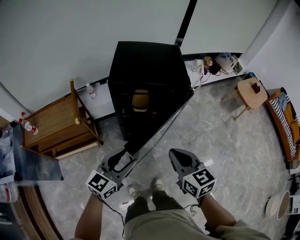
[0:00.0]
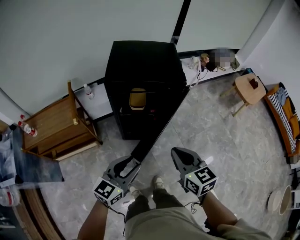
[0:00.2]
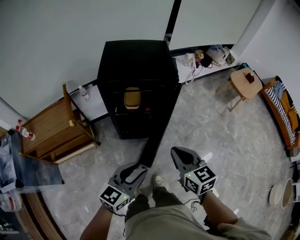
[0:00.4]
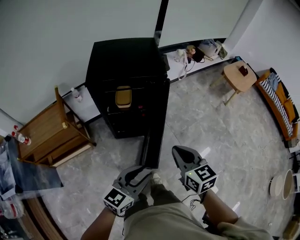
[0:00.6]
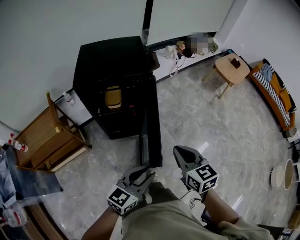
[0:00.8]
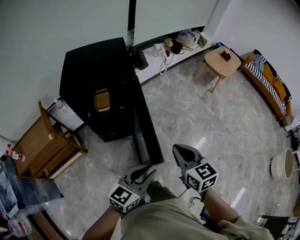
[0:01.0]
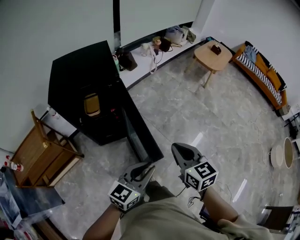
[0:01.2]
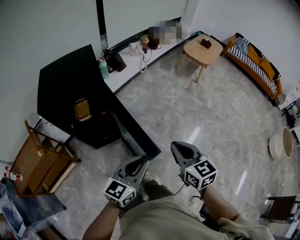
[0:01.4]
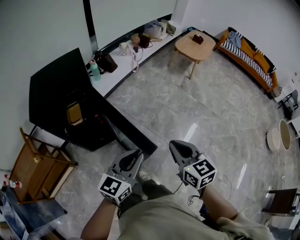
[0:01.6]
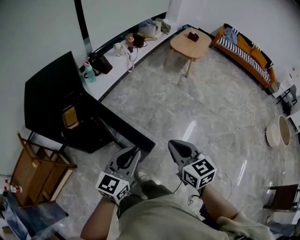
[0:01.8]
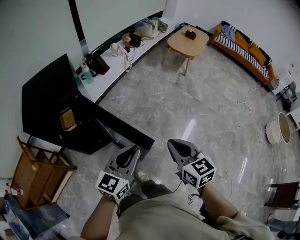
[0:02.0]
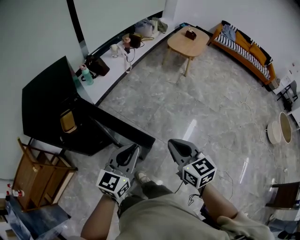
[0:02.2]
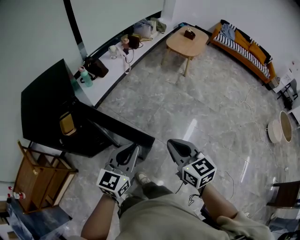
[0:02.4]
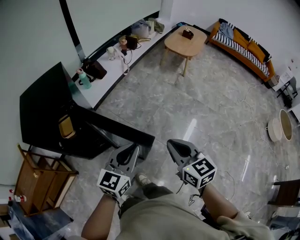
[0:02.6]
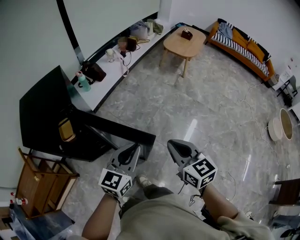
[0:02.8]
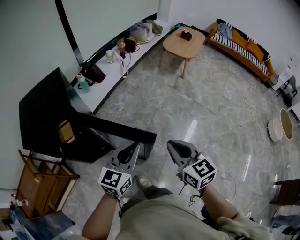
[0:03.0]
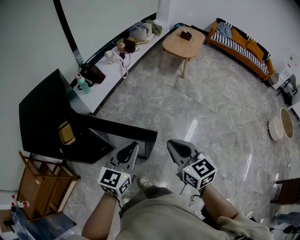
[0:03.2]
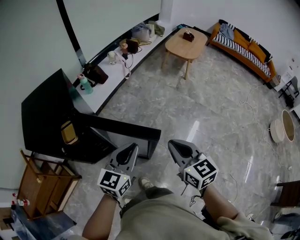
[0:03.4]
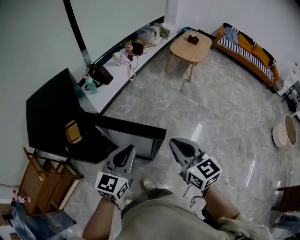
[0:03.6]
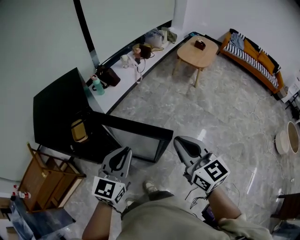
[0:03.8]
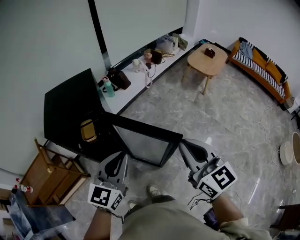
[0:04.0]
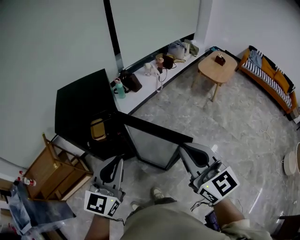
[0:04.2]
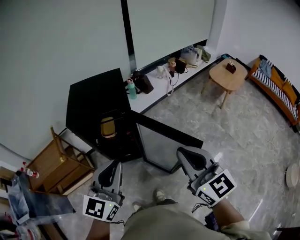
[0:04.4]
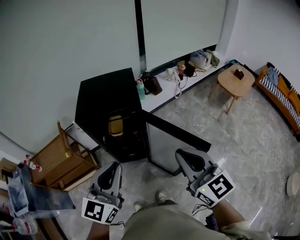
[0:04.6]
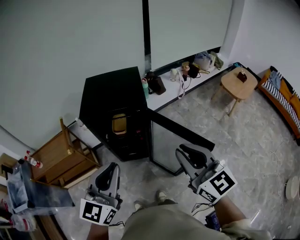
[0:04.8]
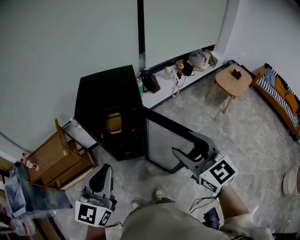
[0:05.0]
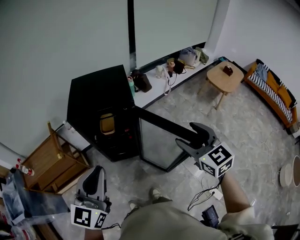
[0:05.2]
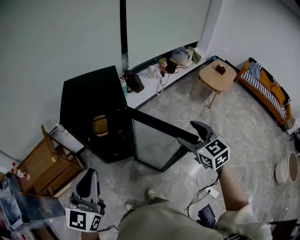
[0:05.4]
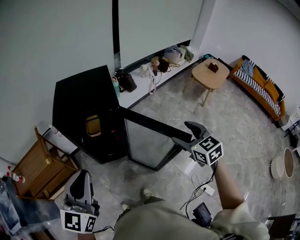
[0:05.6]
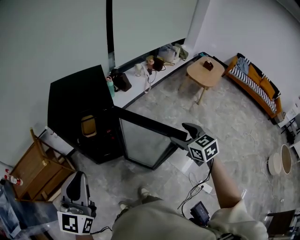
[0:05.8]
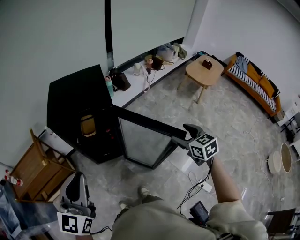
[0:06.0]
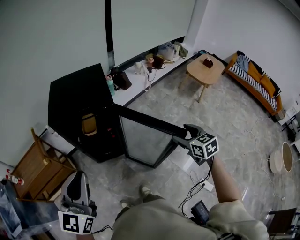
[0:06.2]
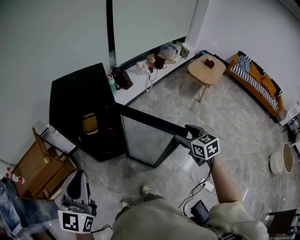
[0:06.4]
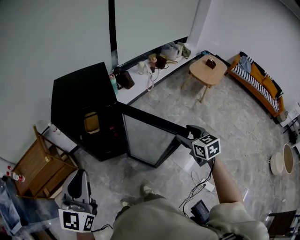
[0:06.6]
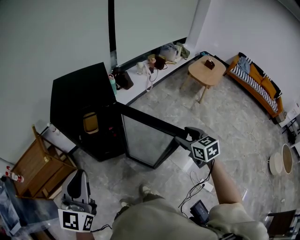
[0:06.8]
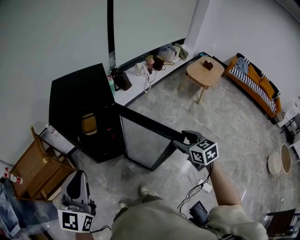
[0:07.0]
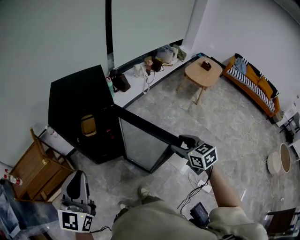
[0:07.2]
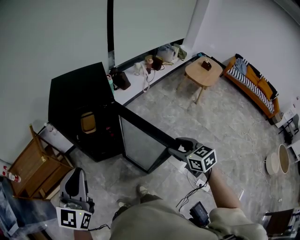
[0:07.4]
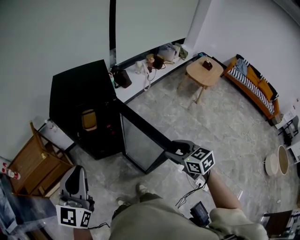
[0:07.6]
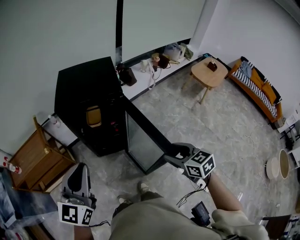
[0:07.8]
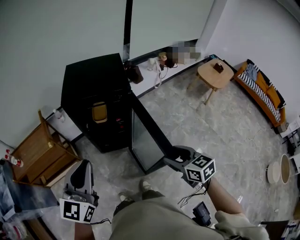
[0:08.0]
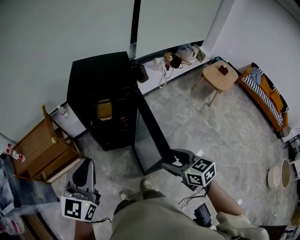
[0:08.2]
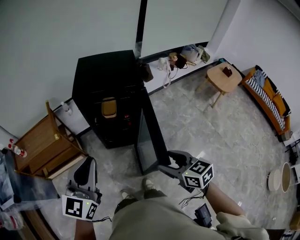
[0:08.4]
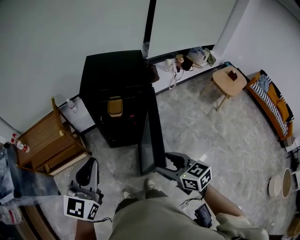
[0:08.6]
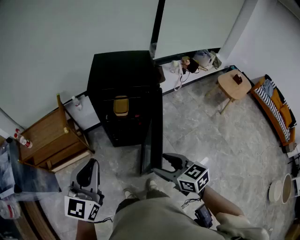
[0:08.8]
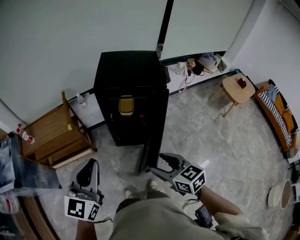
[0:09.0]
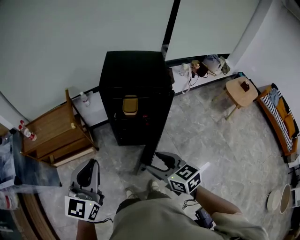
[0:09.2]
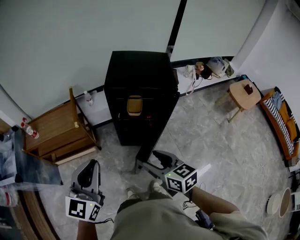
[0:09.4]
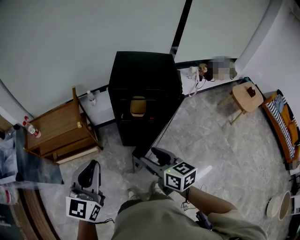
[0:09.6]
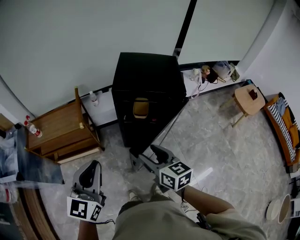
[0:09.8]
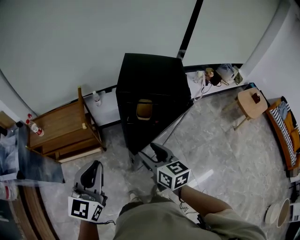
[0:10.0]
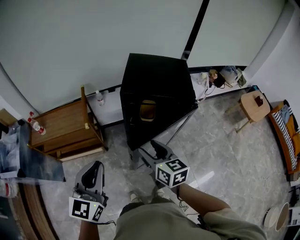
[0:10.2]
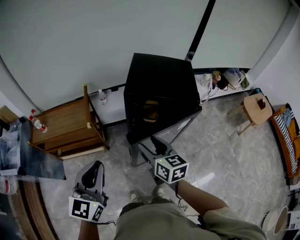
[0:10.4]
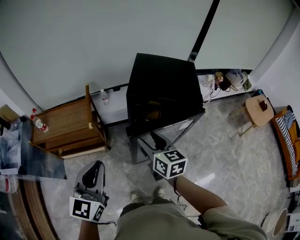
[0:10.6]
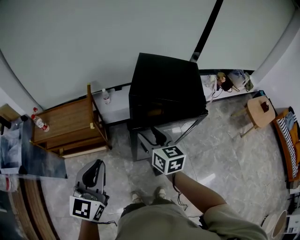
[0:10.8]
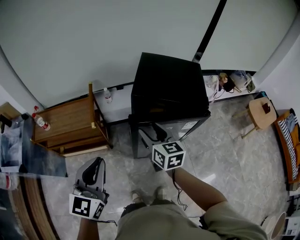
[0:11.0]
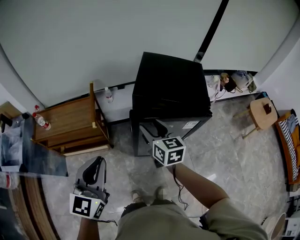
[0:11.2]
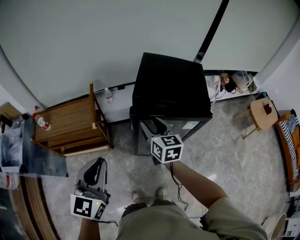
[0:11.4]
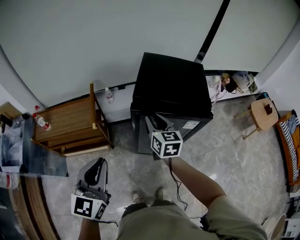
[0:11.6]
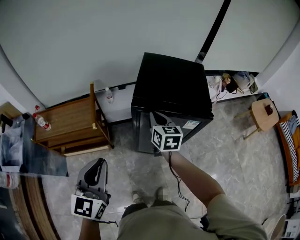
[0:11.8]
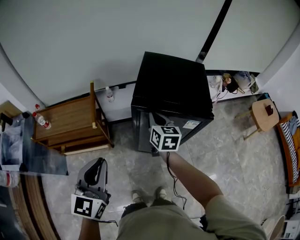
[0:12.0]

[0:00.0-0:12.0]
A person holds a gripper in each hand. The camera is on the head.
0:00.0 to 0:01.6: The right gripper ends up about 35 cm from where it was, and rotates some 30 degrees, while the left gripper changes place by roughly 35 cm, turns by approximately 20 degrees, and closes up.
0:01.6 to 0:03.0: The right gripper moves to the right and forward, some 10 cm. The left gripper heads forward and to the right, covering roughly 15 cm.
0:03.0 to 0:04.4: Both grippers travel together to the left and upward, roughly 25 cm. The right gripper changes its angle by approximately 30 degrees; the left gripper rotates approximately 30 degrees.
0:04.4 to 0:06.0: The left gripper shifts roughly 10 cm to the left. Meanwhile the right gripper moves downward, to the right and forward, some 20 cm, changes its angle by roughly 30 degrees, and opens up.
0:06.0 to 0:07.6: The right gripper shifts roughly 10 cm to the left and backward.
0:07.6 to 0:09.0: The right gripper travels to the left by about 25 cm. Meanwhile the left gripper shifts about 15 cm to the left.
0:09.0 to 0:10.4: The left gripper shifts about 10 cm to the left and forward. The right gripper shifts some 20 cm forward and to the left.
0:10.4 to 0:12.0: The right gripper shifts some 15 cm forward, and closes up.

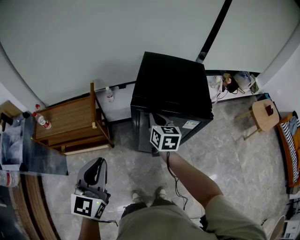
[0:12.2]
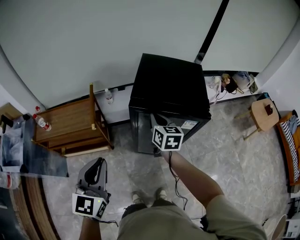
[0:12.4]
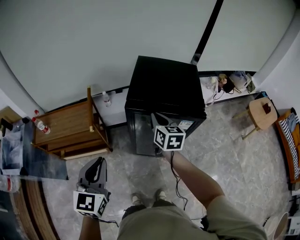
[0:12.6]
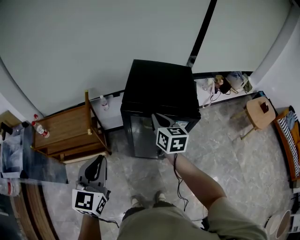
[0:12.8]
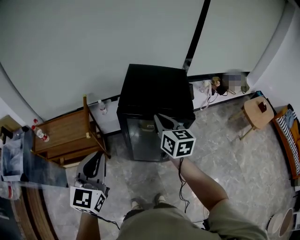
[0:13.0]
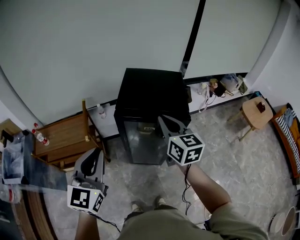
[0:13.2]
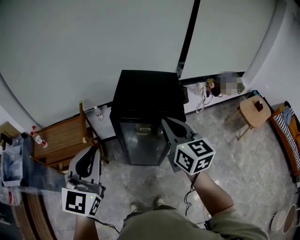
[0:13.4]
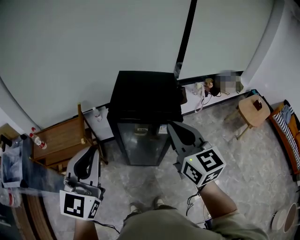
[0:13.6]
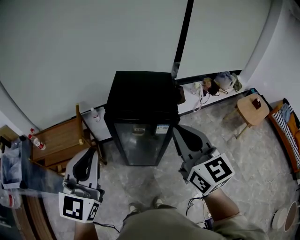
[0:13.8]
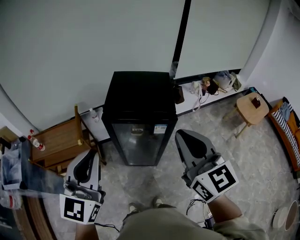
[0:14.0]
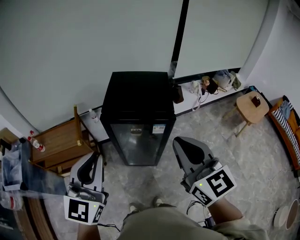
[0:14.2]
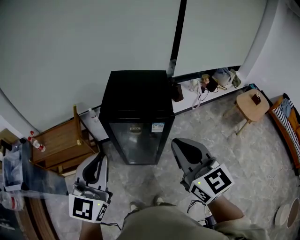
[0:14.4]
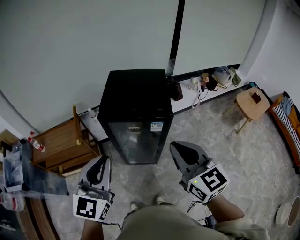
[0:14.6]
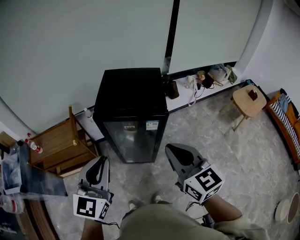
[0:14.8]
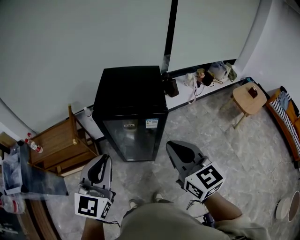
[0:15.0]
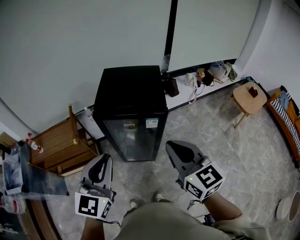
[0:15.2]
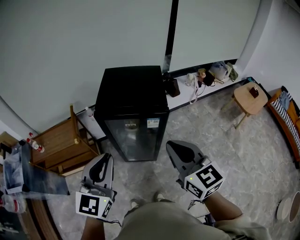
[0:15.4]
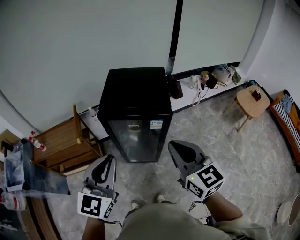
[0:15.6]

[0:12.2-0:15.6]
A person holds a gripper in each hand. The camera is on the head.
0:12.2 to 0:13.8: The left gripper is displaced upward and to the right by about 20 cm. Meanwhile the right gripper heads upward, backward and to the right, covering roughly 35 cm, and swivels roughly 30 degrees.
0:13.8 to 0:15.6: The left gripper goes approximately 10 cm to the right and downward. The right gripper travels downward by roughly 5 cm.

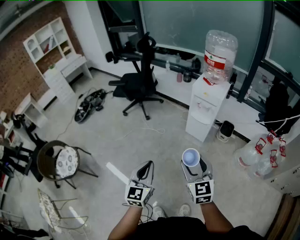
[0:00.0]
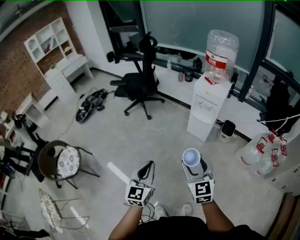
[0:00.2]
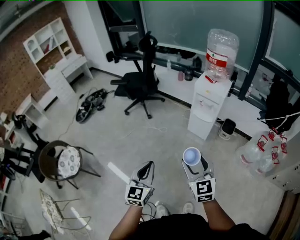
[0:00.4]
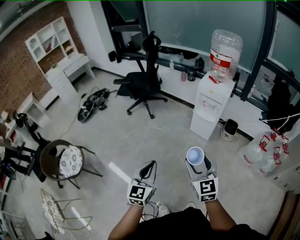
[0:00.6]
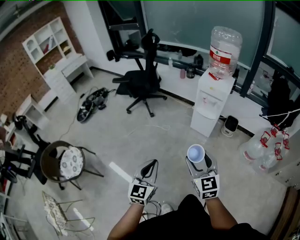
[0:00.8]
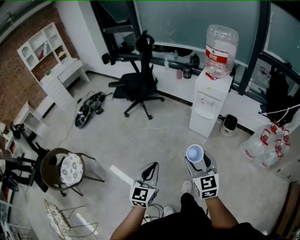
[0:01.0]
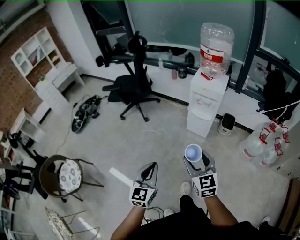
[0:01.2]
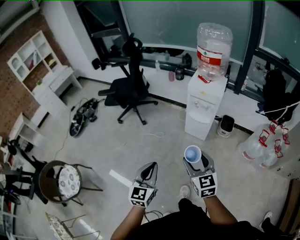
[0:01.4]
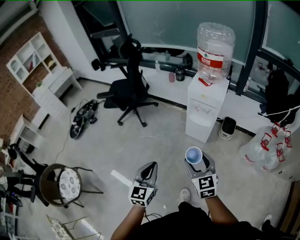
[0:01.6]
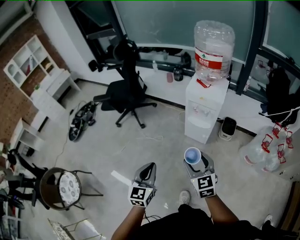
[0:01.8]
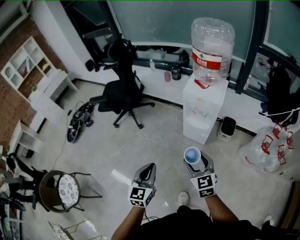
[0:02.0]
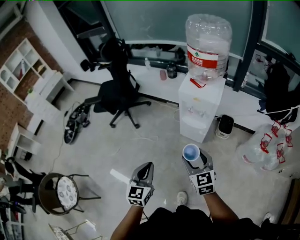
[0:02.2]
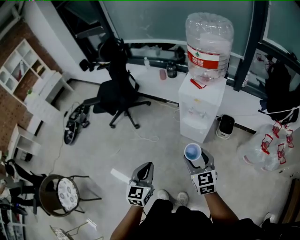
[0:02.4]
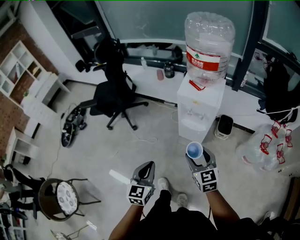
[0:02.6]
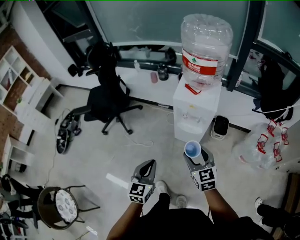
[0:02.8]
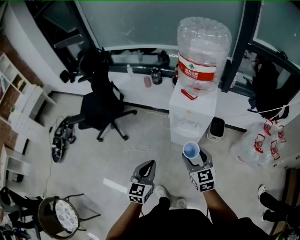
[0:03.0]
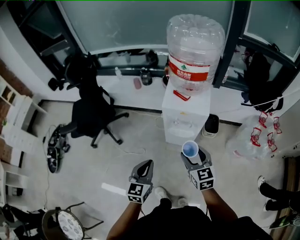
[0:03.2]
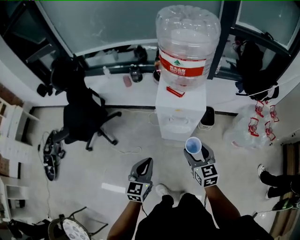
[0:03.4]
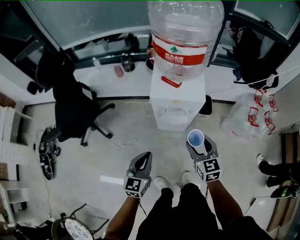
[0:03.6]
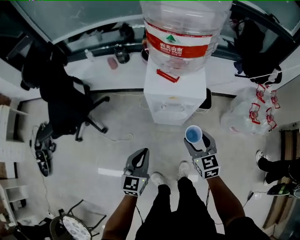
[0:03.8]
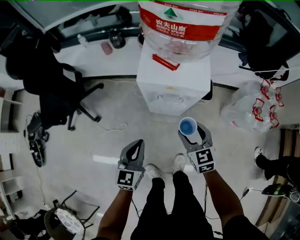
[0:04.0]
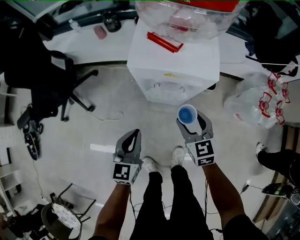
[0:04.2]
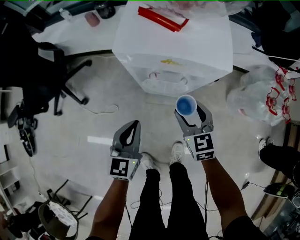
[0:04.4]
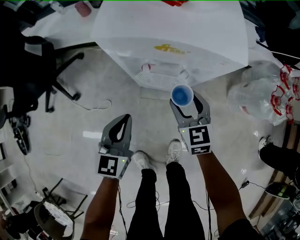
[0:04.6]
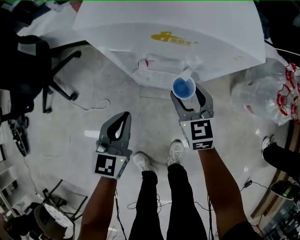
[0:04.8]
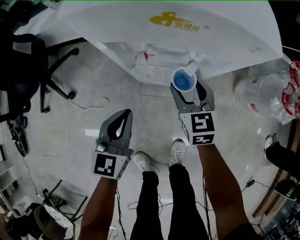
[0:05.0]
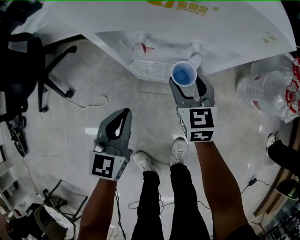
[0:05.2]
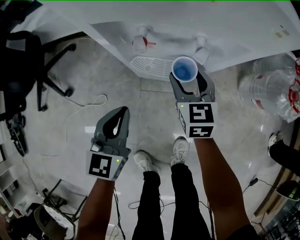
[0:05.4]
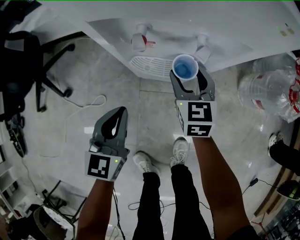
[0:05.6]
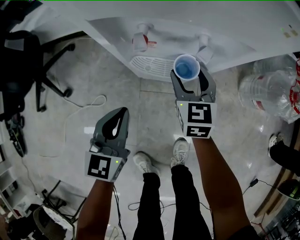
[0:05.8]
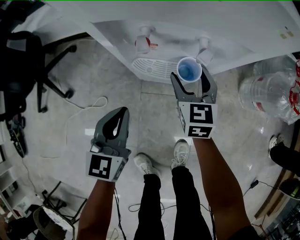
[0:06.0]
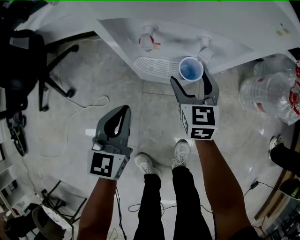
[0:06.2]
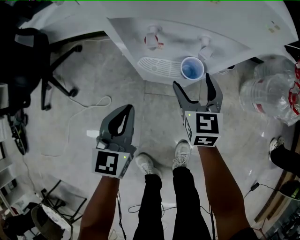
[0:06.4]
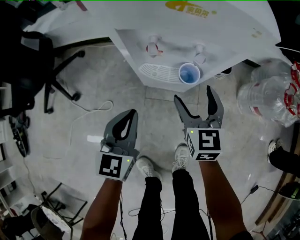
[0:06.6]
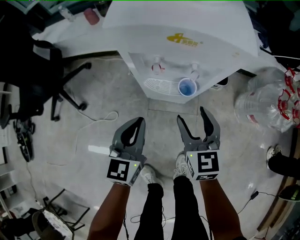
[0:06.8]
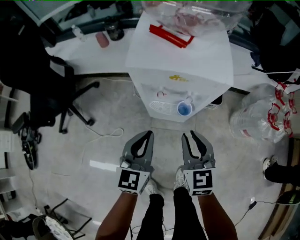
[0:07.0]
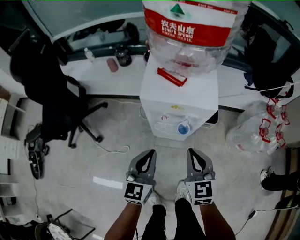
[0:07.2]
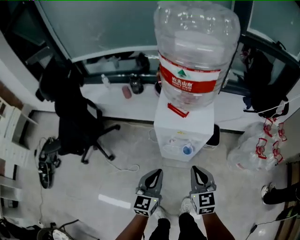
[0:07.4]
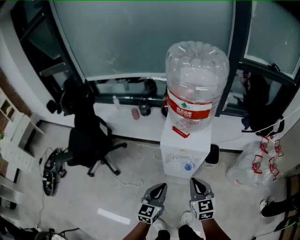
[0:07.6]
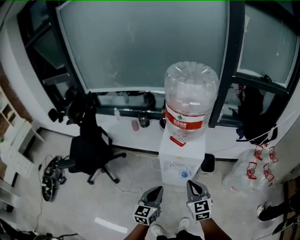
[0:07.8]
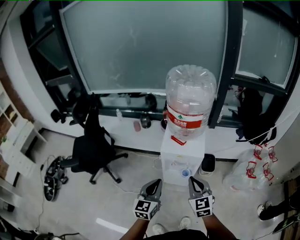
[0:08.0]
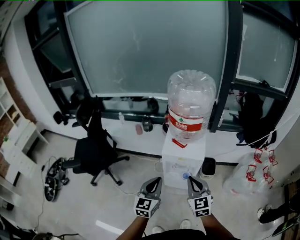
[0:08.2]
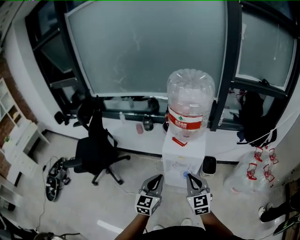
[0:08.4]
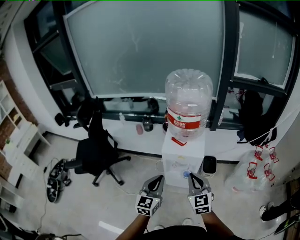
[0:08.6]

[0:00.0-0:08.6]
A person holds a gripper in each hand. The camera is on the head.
0:00.0 to 0:01.4: The grippers both shift forward by approximately 10 cm.
0:01.4 to 0:02.8: Both grippers travel together forward, roughly 25 cm.
0:02.8 to 0:04.4: The right gripper travels downward and forward by about 35 cm; the left gripper travels forward and downward by some 30 cm.
0:04.4 to 0:05.8: The right gripper is displaced downward and forward by approximately 15 cm. Meanwhile the left gripper shifts about 15 cm downward.
0:05.8 to 0:07.2: The right gripper is displaced upward and backward by roughly 30 cm, and closes up; the left gripper moves upward, some 20 cm.
0:07.2 to 0:08.6: Both grippers move upward, some 20 cm.
